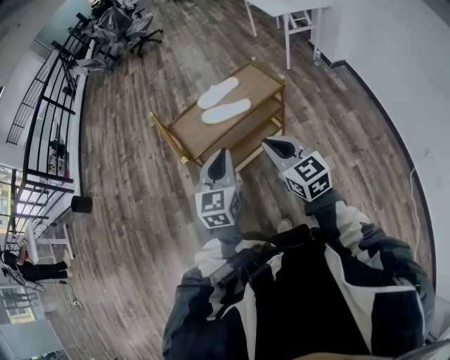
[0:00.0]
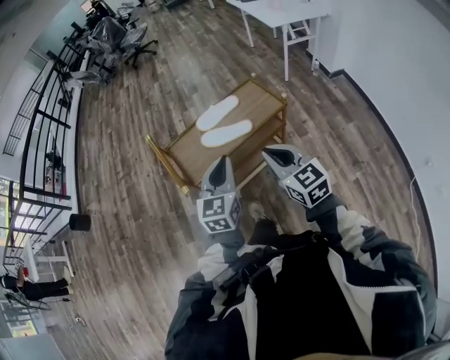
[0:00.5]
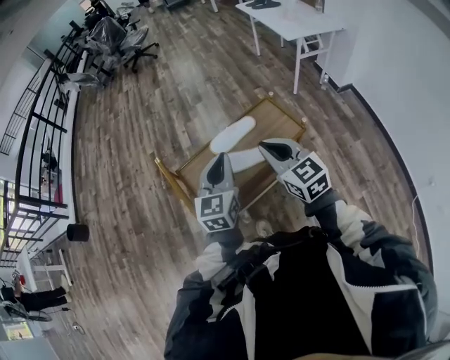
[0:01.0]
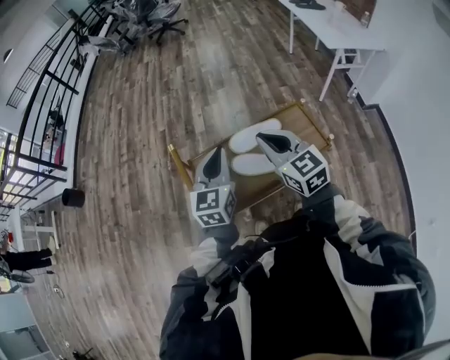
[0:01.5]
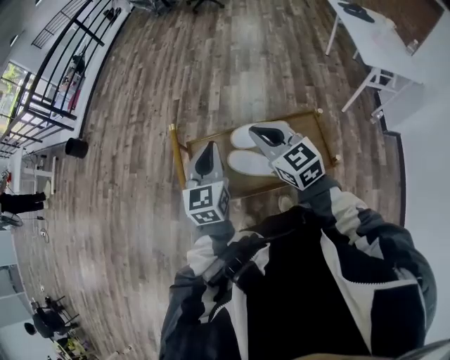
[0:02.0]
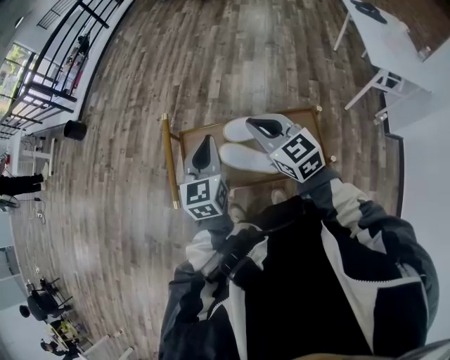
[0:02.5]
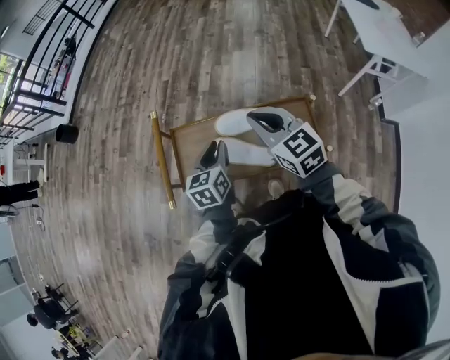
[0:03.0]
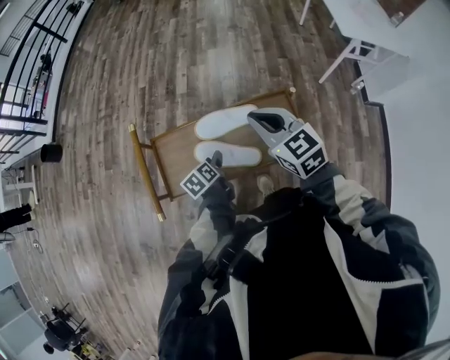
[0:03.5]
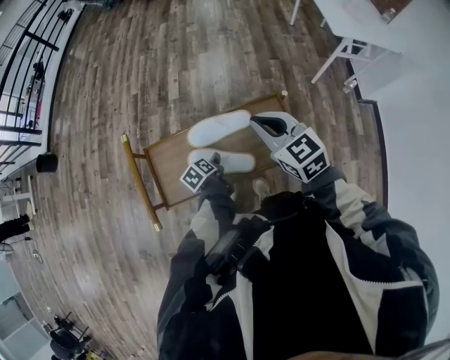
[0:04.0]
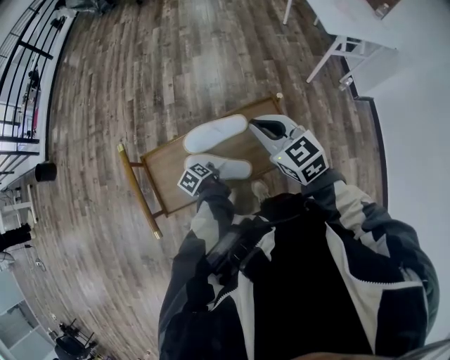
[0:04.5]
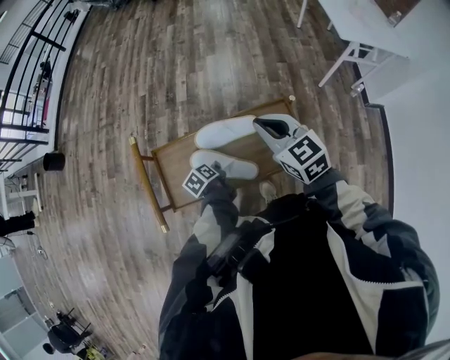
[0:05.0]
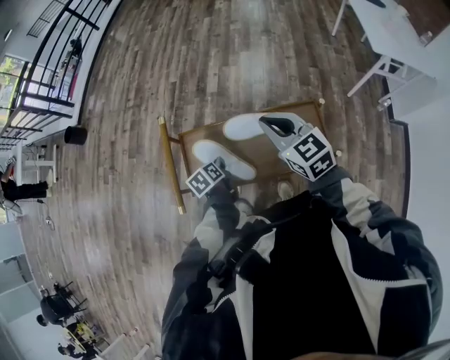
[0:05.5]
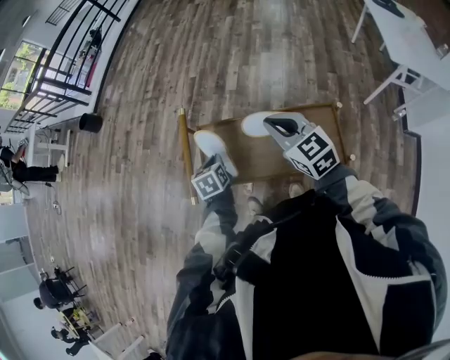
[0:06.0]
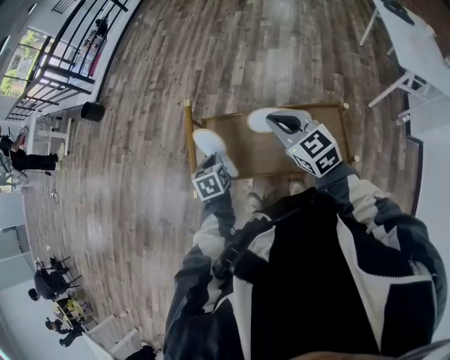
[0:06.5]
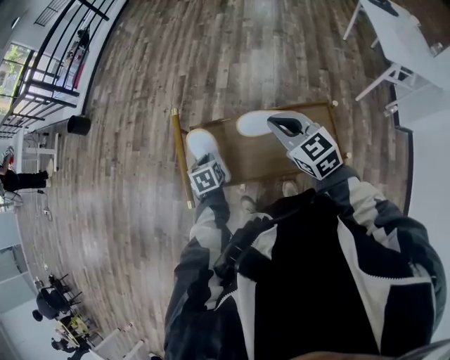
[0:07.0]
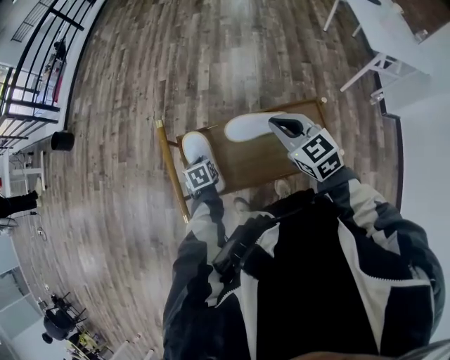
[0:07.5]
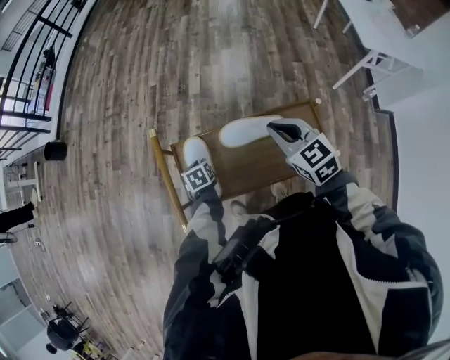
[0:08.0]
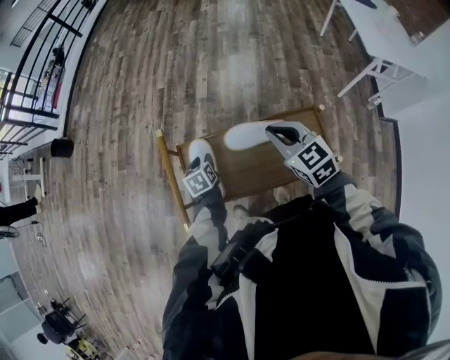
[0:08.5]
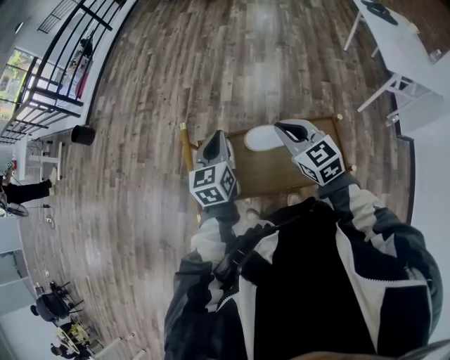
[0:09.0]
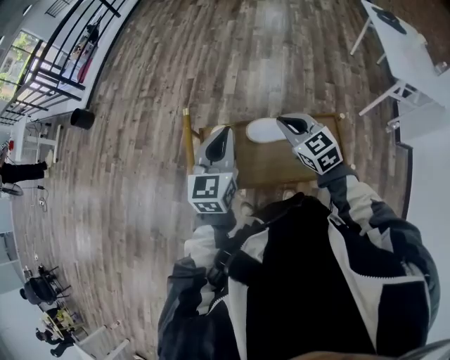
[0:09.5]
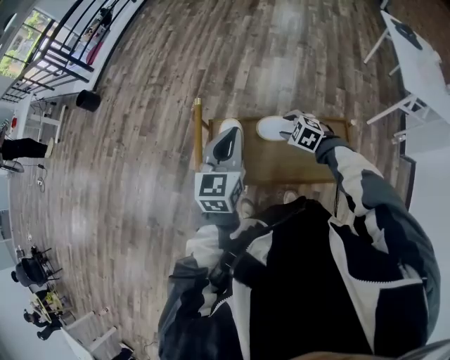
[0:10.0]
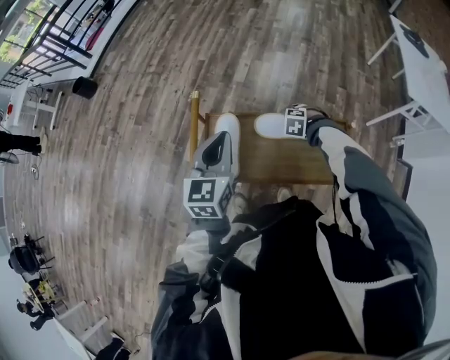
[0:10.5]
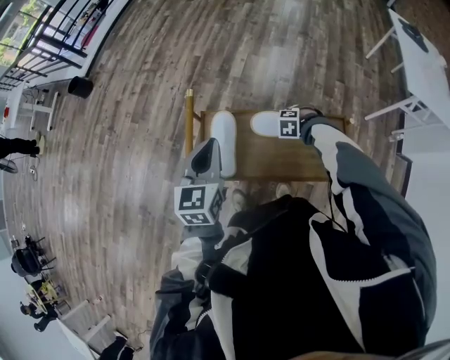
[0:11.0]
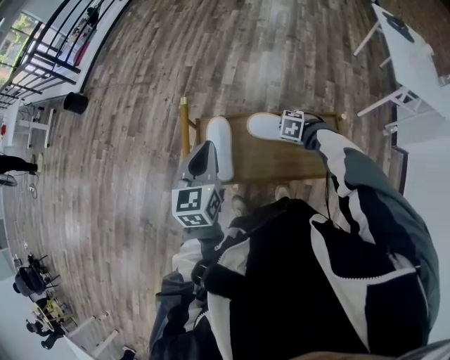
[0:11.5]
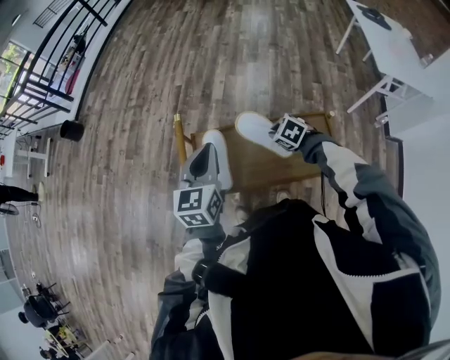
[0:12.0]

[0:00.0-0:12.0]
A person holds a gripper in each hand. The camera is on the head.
0:00.0 to 0:02.0: The left gripper changes place by roughly 35 cm, and swivels roughly 30 degrees; the right gripper moves some 40 cm, and rotates approximately 30 degrees.
0:02.0 to 0:04.0: The left gripper is displaced downward by approximately 35 cm, tilts its fingers about 40 degrees downward, and opens up. Meanwhile the right gripper heads to the right, covering some 15 cm.
0:04.0 to 0:06.0: The left gripper travels to the left and upward by roughly 20 cm, changes its angle by approximately 30 degrees, and closes up. Meanwhile the right gripper moves to the left, roughly 10 cm.
0:06.0 to 0:08.0: The left gripper is displaced downward and forward by some 15 cm. Meanwhile the right gripper moves to the right, roughly 5 cm.
0:08.0 to 0:10.0: The left gripper is displaced upward by some 30 cm, and tilts its fingers some 50 degrees upward; the right gripper travels downward by roughly 15 cm, changes its angle by approximately 50 degrees, and opens its fingers.
0:10.0 to 0:12.0: The right gripper travels downward and back again, roughly 10 cm each way, and closes up.

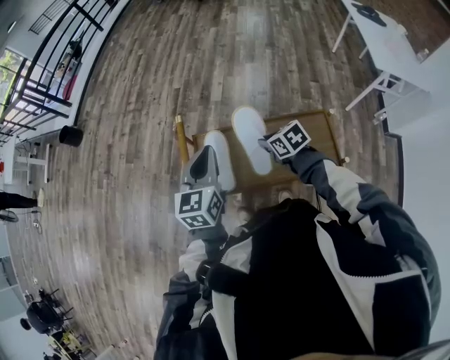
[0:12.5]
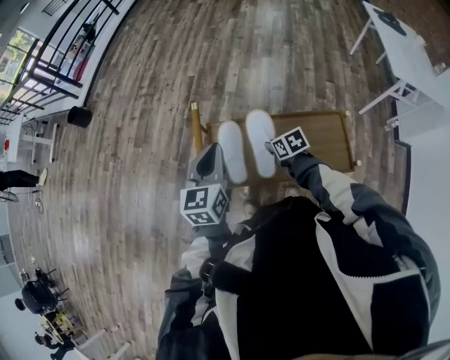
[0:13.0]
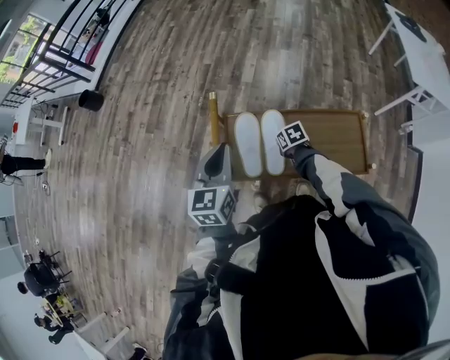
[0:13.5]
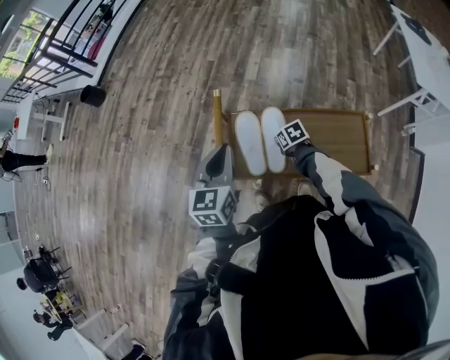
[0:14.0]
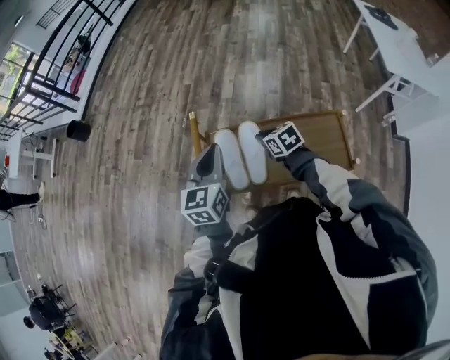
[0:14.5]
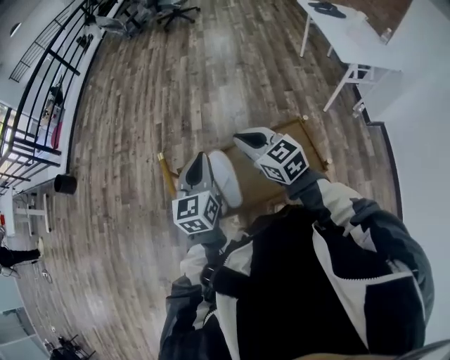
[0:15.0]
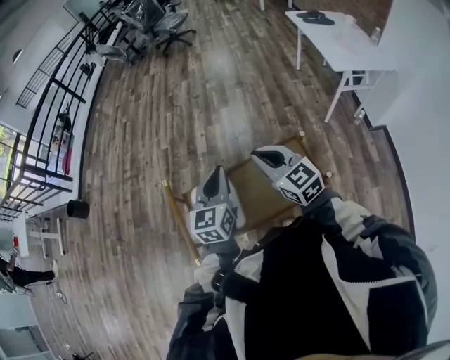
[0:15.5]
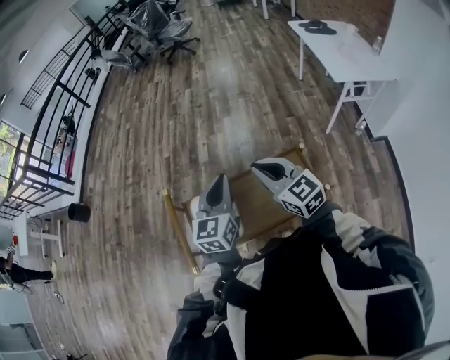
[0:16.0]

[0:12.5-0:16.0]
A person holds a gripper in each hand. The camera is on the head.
0:12.5 to 0:14.5: The right gripper shifts some 5 cm forward, and reaches about 15 cm downward, then returns.
0:14.5 to 0:16.0: The left gripper heads to the right, covering approximately 20 cm, while the right gripper travels upward and to the right by approximately 25 cm, and tips its fingers upward by some 40 degrees.

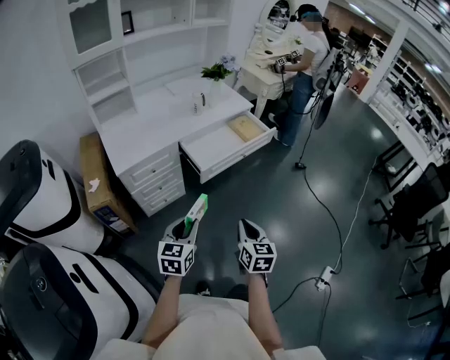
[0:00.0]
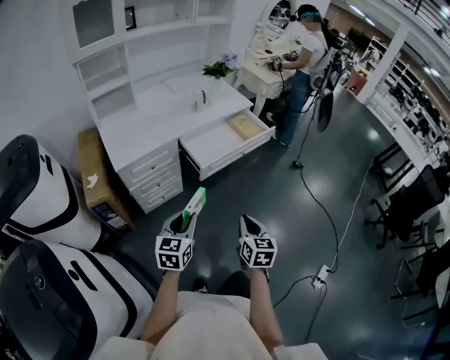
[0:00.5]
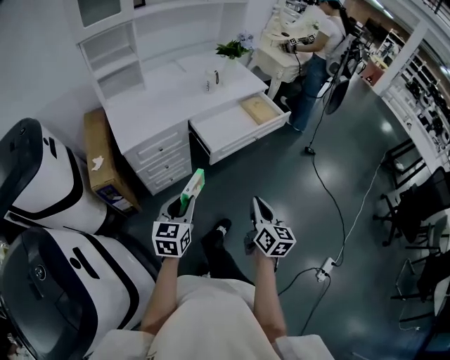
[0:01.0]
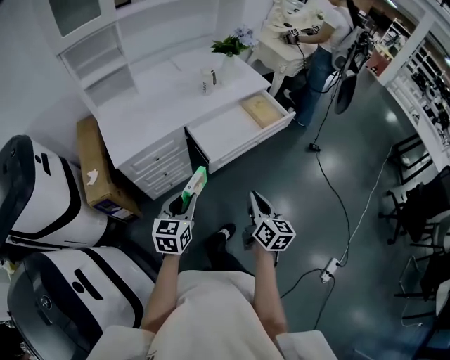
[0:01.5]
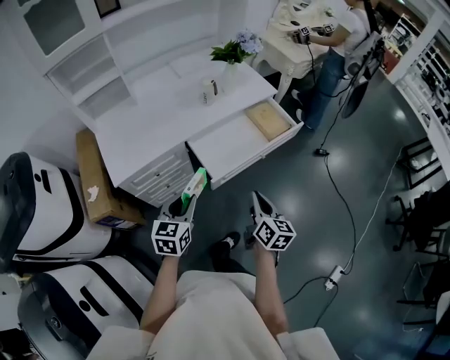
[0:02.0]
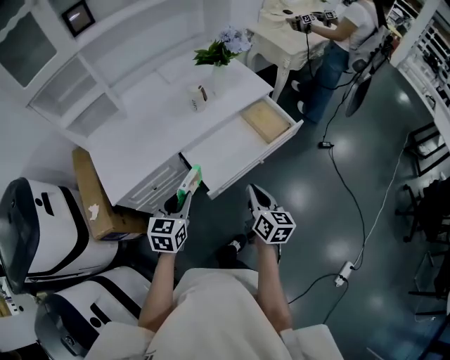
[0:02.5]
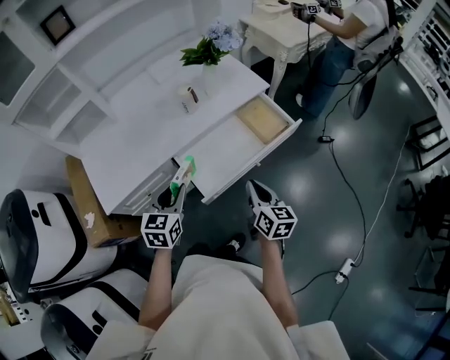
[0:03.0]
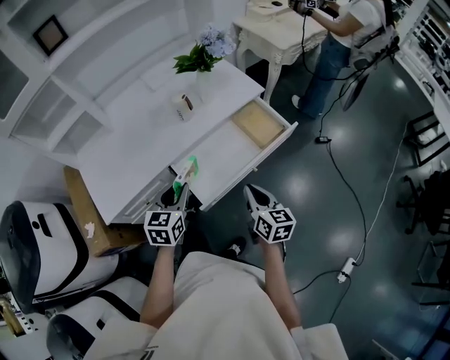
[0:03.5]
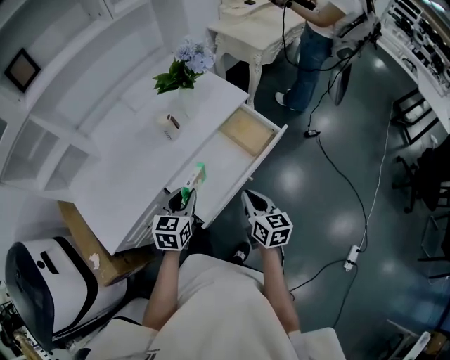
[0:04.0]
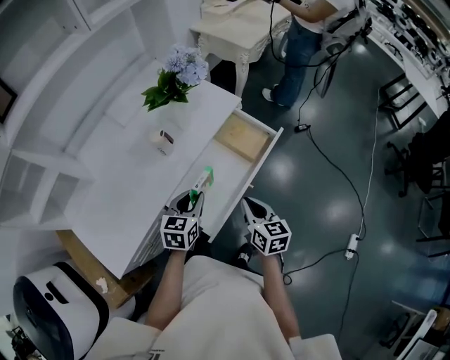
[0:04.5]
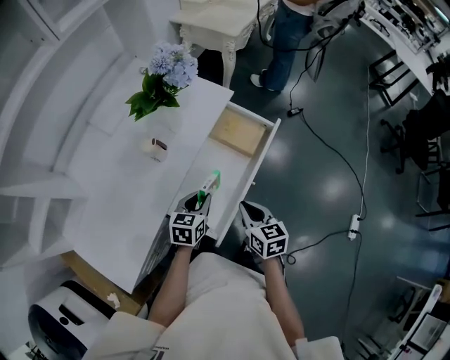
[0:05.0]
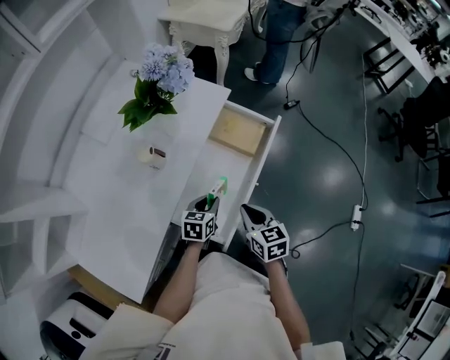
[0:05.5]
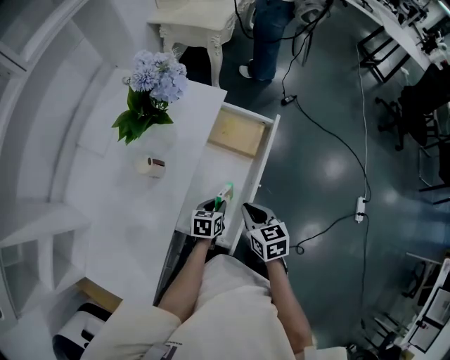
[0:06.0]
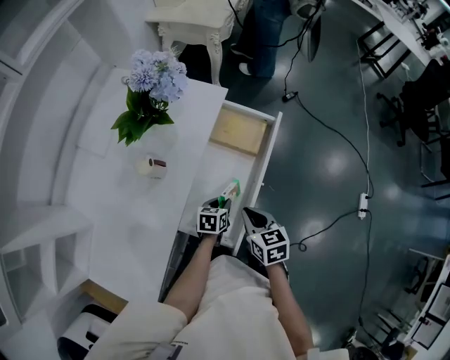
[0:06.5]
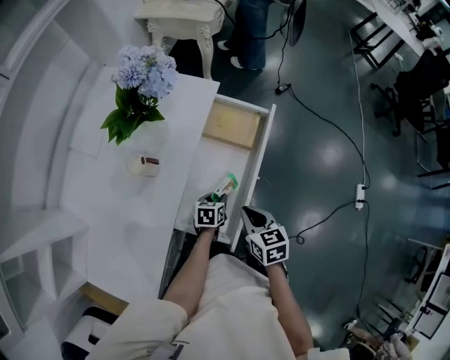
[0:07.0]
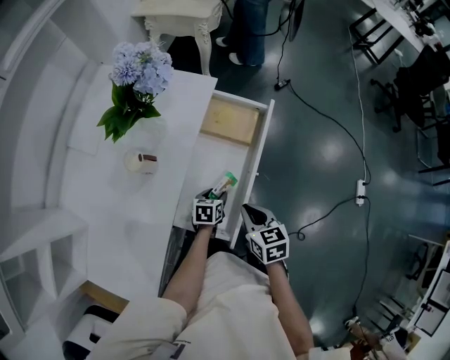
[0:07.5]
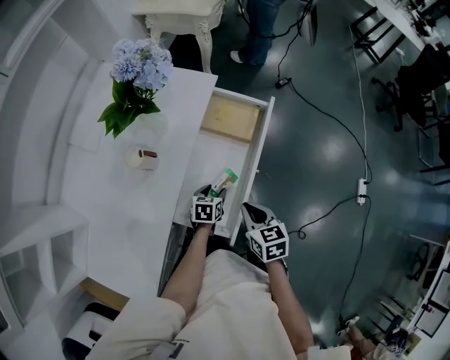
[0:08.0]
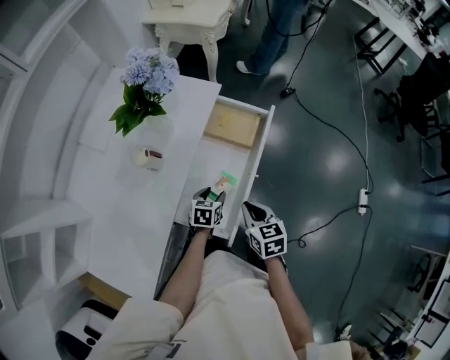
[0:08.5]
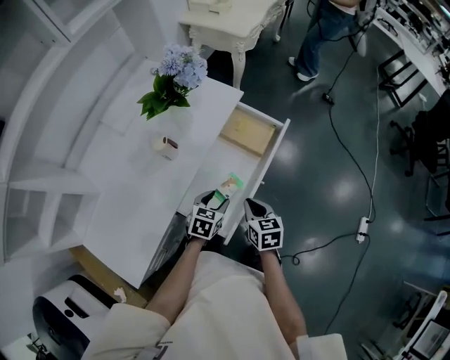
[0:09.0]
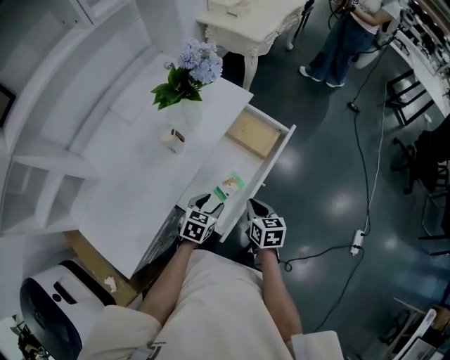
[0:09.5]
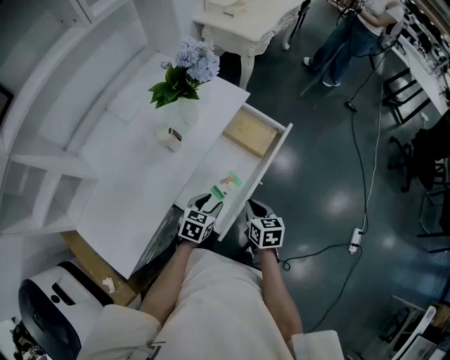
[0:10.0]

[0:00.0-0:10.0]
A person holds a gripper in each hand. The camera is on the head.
0:00.0 to 0:02.0: The grippers both shift forward by some 25 cm.
0:02.0 to 0:04.0: Both grippers travel together forward, about 20 cm.
0:04.0 to 0:06.0: The left gripper is displaced downward by some 20 cm, and swivels some 40 degrees, while the right gripper changes place by some 10 cm, and swivels about 20 degrees.
0:06.0 to 0:08.0: The left gripper opens up.
0:08.0 to 0:10.0: The left gripper travels upward and backward by some 15 cm.

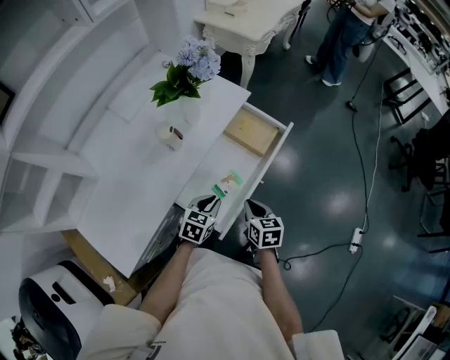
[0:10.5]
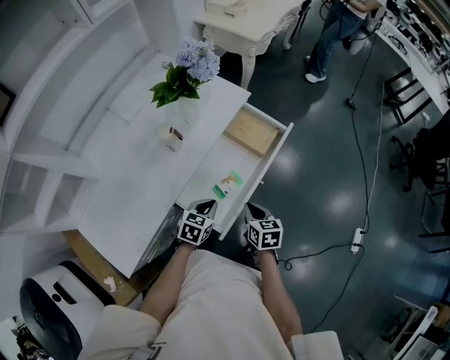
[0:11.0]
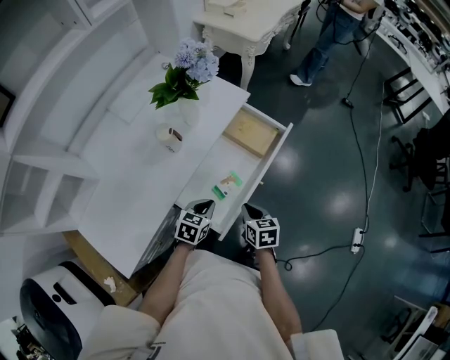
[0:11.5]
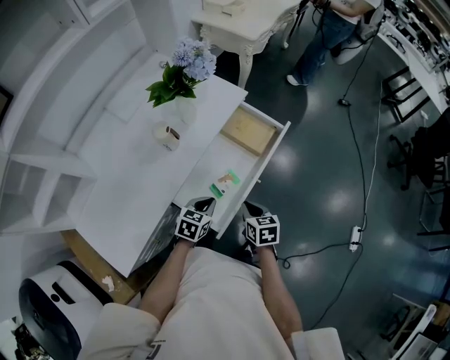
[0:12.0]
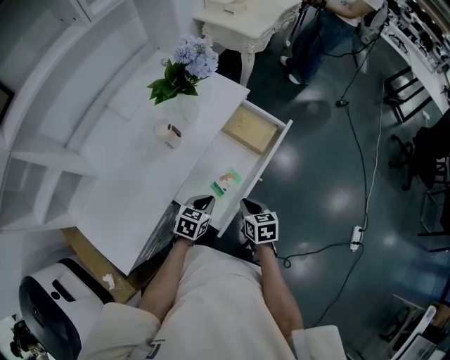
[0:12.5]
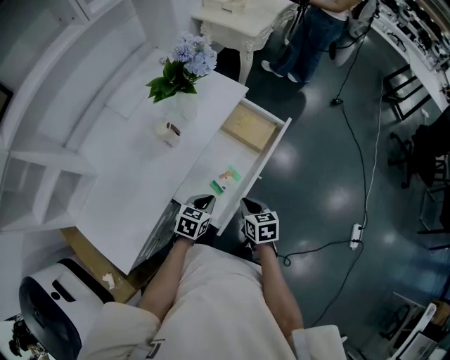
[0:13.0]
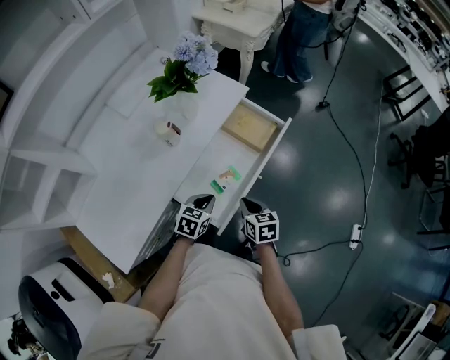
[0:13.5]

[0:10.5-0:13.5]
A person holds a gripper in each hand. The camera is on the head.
0:10.5 to 0:12.0: The grippers make only small movements.
0:12.0 to 0:13.5: Both grippers stay about where they are.
